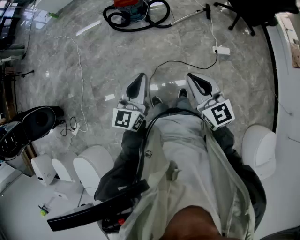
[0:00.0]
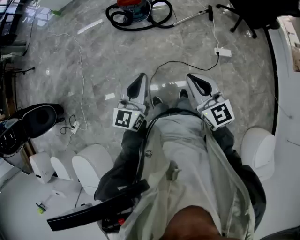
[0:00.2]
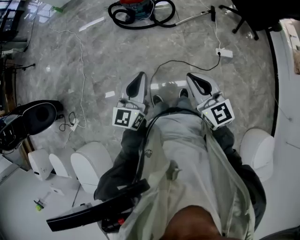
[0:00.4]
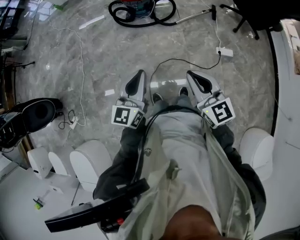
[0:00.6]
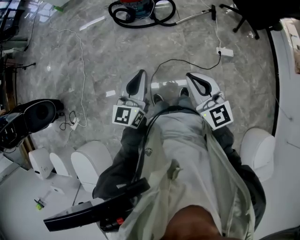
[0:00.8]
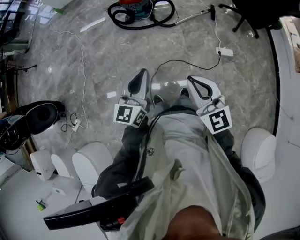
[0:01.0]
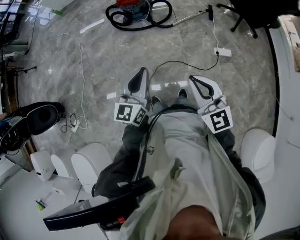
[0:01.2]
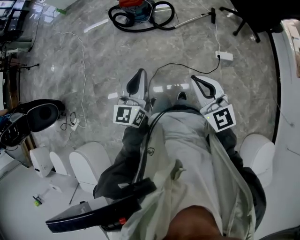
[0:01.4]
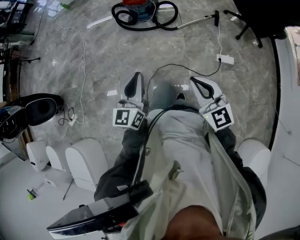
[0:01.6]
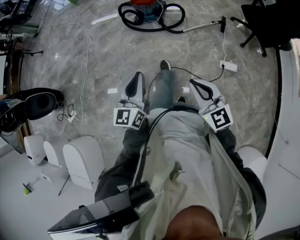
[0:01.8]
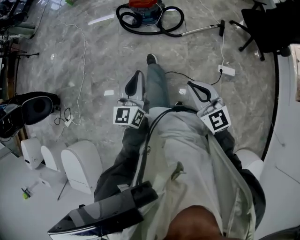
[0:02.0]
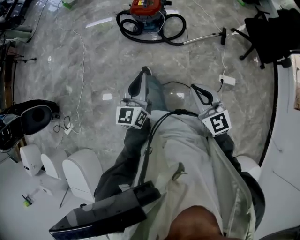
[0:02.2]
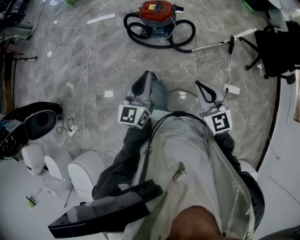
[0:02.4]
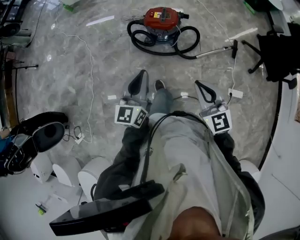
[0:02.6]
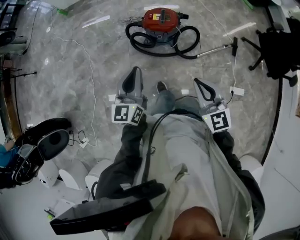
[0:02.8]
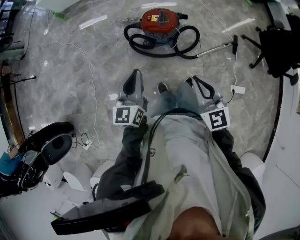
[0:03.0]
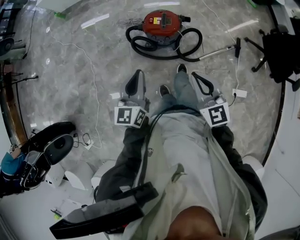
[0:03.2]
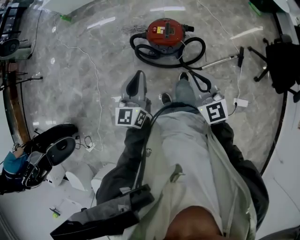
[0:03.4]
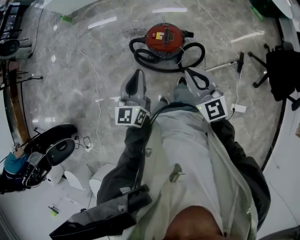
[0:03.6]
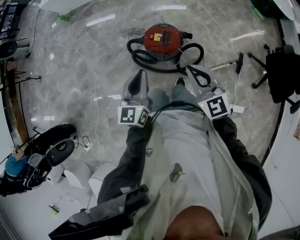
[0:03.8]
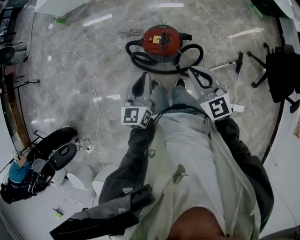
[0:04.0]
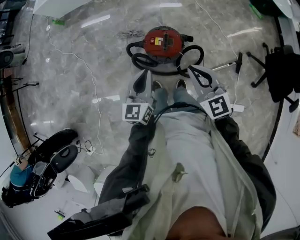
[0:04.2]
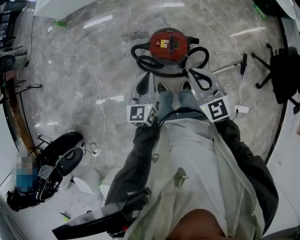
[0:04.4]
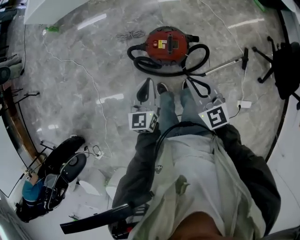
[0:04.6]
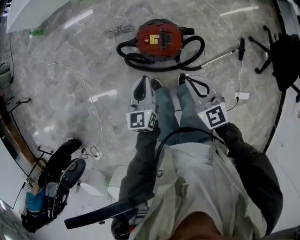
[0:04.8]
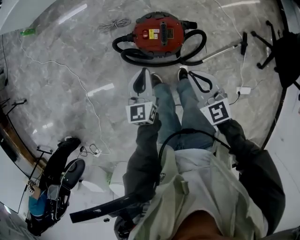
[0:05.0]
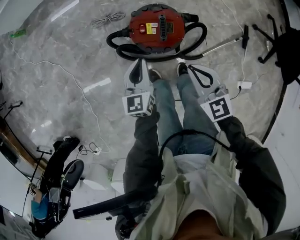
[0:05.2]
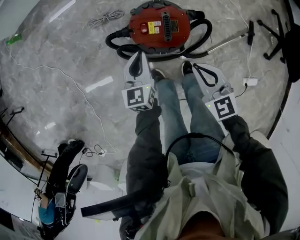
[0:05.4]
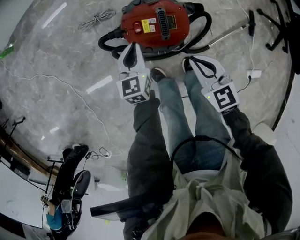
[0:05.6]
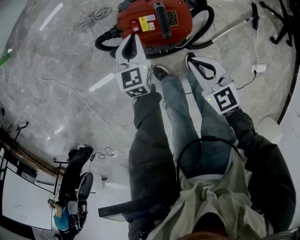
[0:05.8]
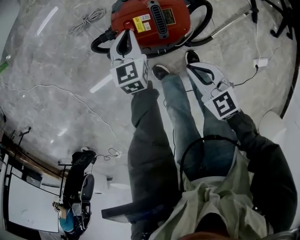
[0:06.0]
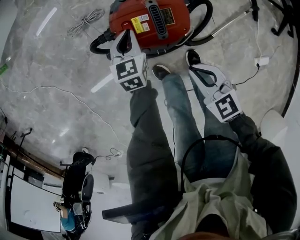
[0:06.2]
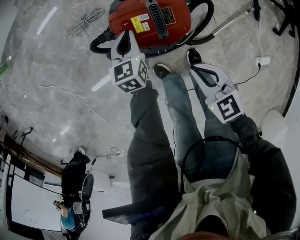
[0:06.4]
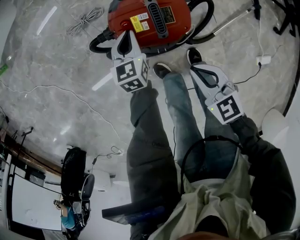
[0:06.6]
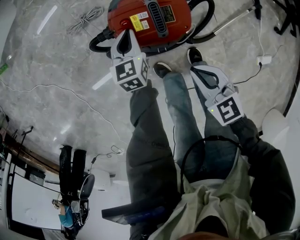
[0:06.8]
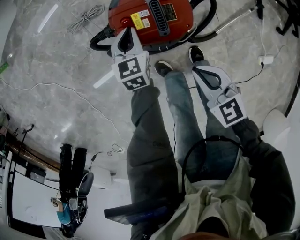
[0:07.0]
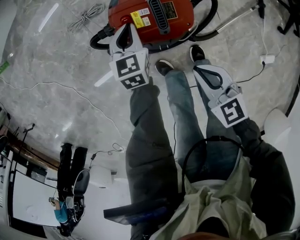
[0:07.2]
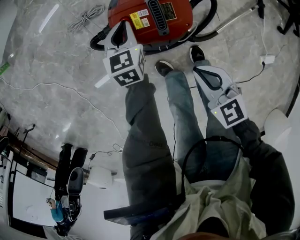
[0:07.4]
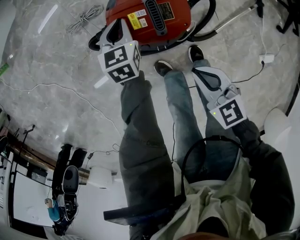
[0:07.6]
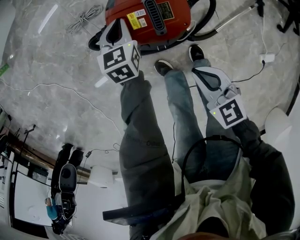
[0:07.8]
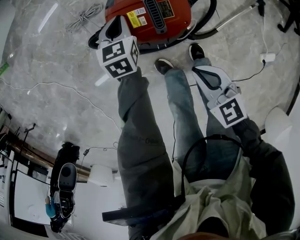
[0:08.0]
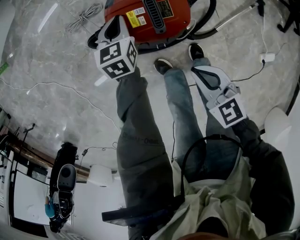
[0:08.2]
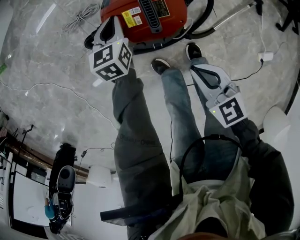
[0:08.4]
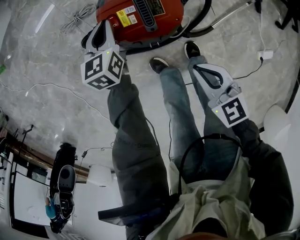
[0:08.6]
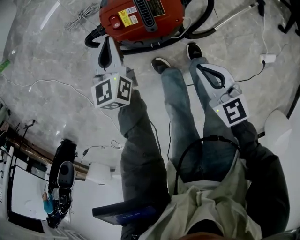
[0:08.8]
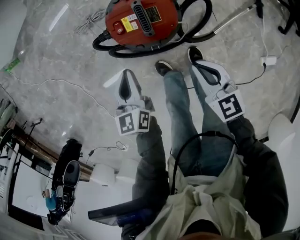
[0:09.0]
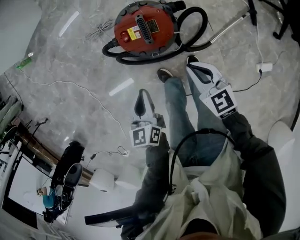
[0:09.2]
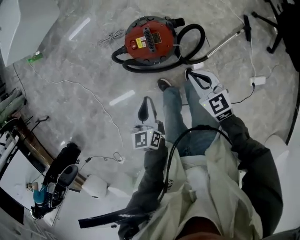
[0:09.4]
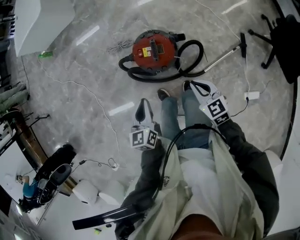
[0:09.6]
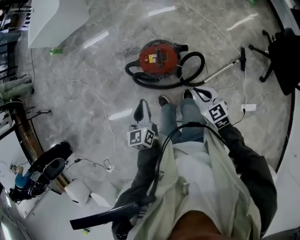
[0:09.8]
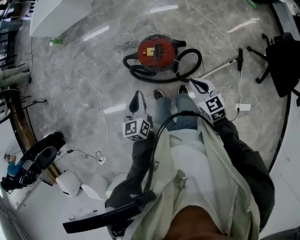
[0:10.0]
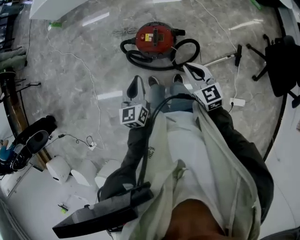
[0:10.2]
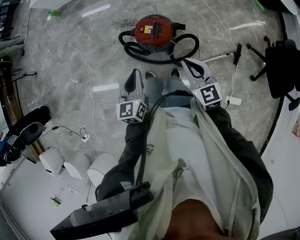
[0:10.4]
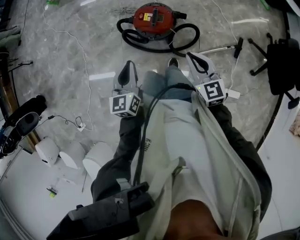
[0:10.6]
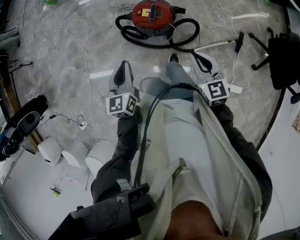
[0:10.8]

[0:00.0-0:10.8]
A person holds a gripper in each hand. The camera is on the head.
0:00.0 to 0:01.6: The right gripper heads to the right, covering approximately 5 cm.
0:01.6 to 0:03.0: The pair of grippers is taken forward, some 50 cm.
0:03.0 to 0:04.6: The left gripper moves forward and downward, approximately 30 cm. Meanwhile the right gripper travels forward by approximately 30 cm.
0:04.6 to 0:06.2: The left gripper goes some 40 cm downward and forward, and changes its angle by some 30 degrees, while the right gripper travels downward by about 35 cm, and swivels some 20 degrees.
0:06.2 to 0:07.8: The grippers stay close to where they were, moving slightly.
0:07.8 to 0:09.2: The left gripper is displaced backward and upward by some 30 cm, and rotates approximately 20 degrees; the right gripper is displaced upward and to the right by approximately 10 cm.
0:09.2 to 0:10.8: Both grippers travel together upward, approximately 25 cm.

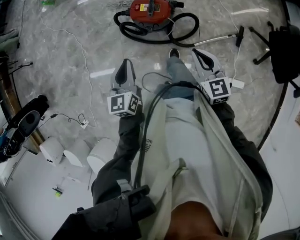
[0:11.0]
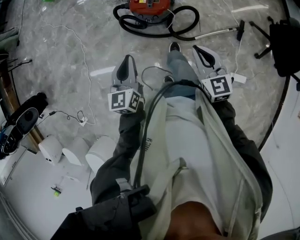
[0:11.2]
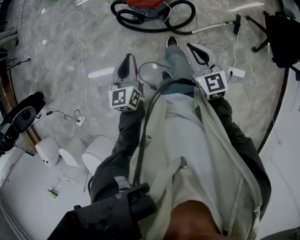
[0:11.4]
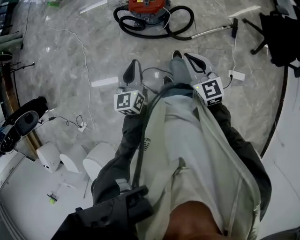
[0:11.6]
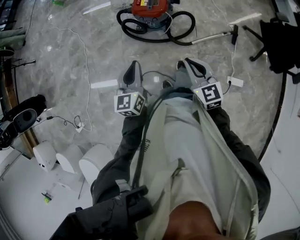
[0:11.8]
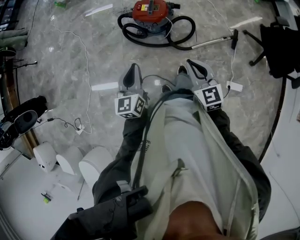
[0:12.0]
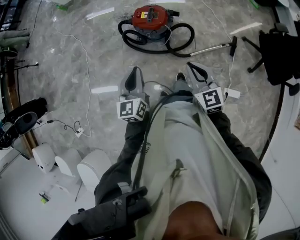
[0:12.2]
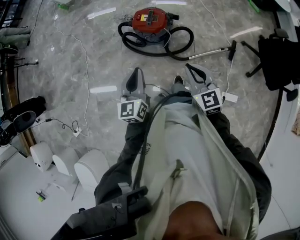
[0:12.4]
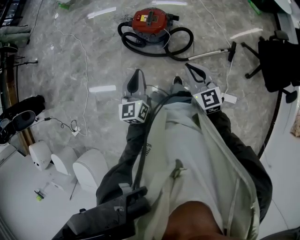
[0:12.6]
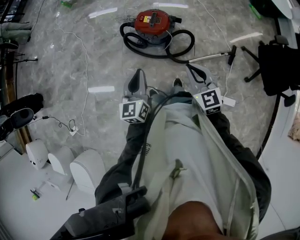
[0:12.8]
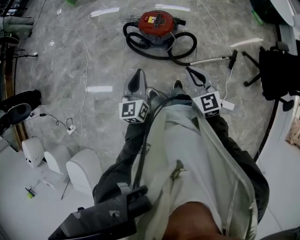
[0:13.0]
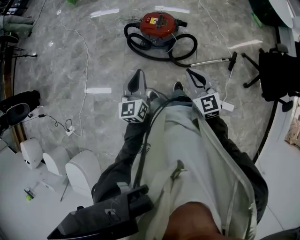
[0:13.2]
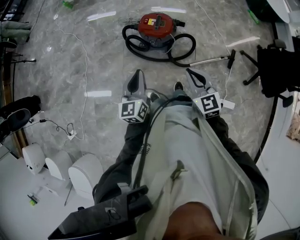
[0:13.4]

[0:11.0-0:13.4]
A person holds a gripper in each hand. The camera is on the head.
0:11.0 to 0:12.2: The grippers both shift backward by approximately 15 cm.
0:12.2 to 0:13.4: The grippers stay close to where they were, moving slightly.

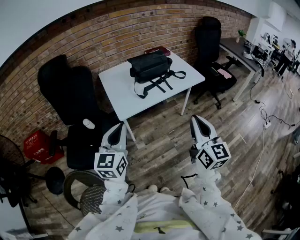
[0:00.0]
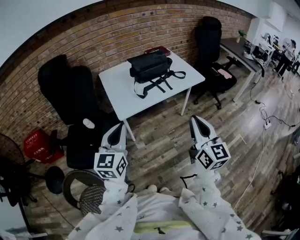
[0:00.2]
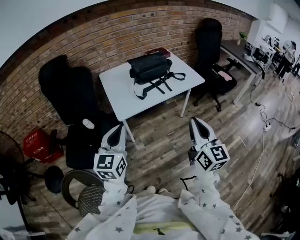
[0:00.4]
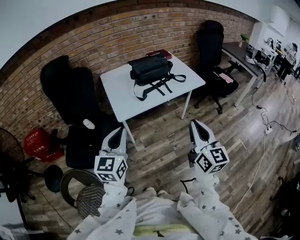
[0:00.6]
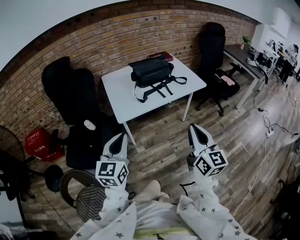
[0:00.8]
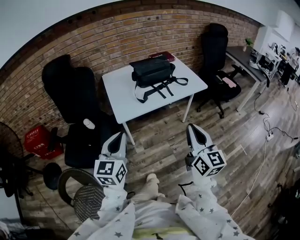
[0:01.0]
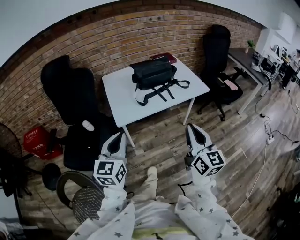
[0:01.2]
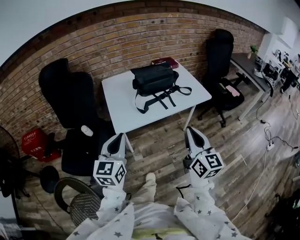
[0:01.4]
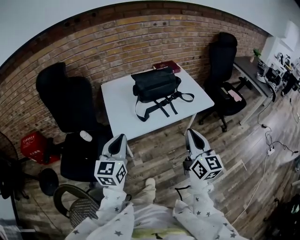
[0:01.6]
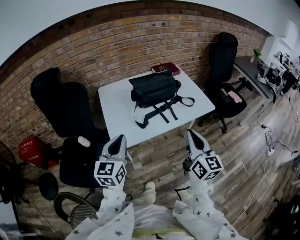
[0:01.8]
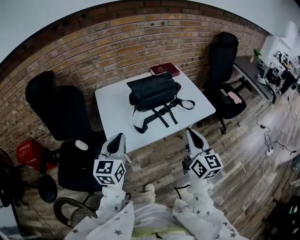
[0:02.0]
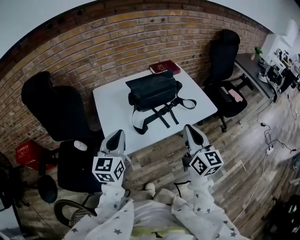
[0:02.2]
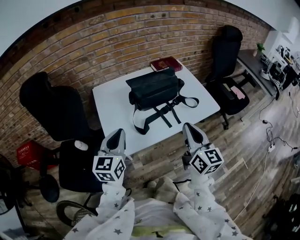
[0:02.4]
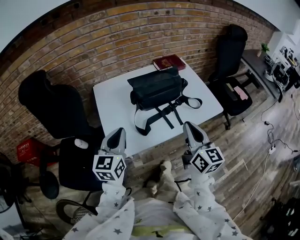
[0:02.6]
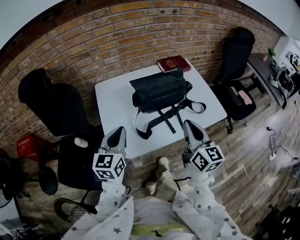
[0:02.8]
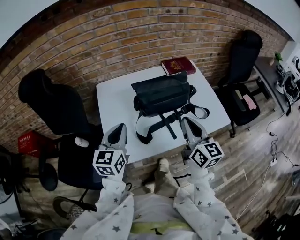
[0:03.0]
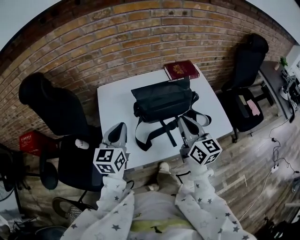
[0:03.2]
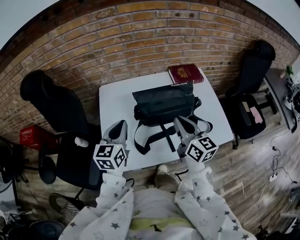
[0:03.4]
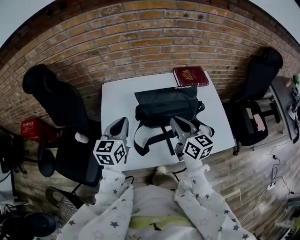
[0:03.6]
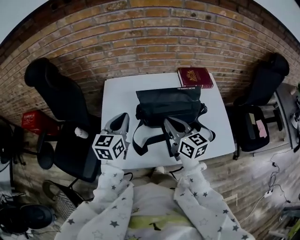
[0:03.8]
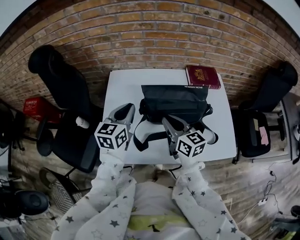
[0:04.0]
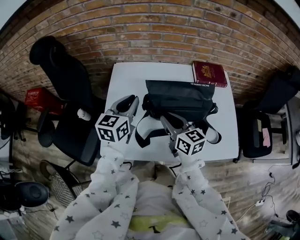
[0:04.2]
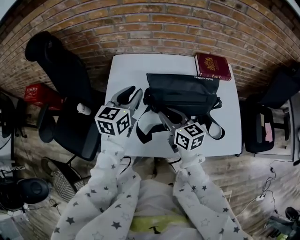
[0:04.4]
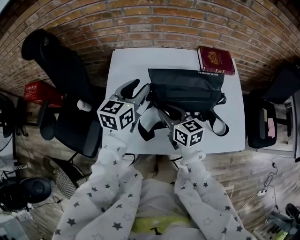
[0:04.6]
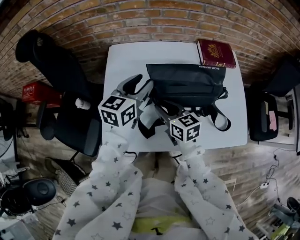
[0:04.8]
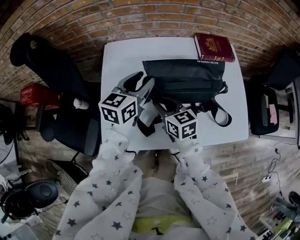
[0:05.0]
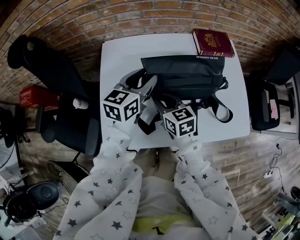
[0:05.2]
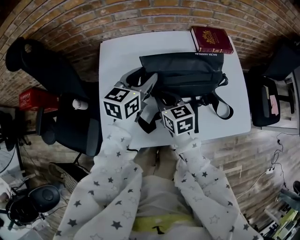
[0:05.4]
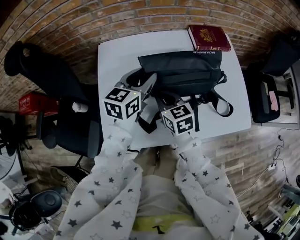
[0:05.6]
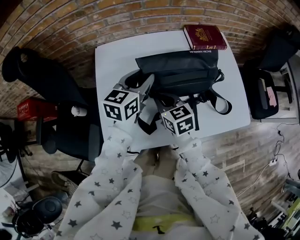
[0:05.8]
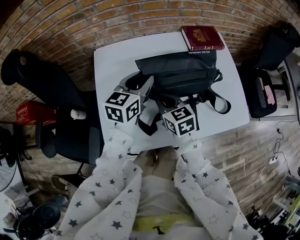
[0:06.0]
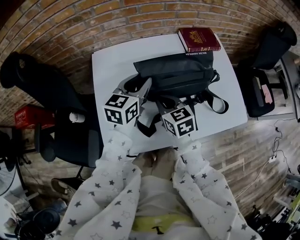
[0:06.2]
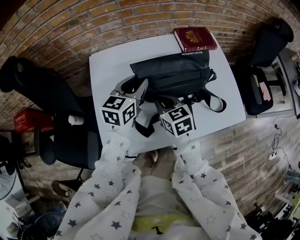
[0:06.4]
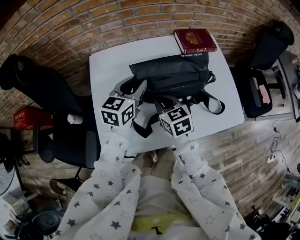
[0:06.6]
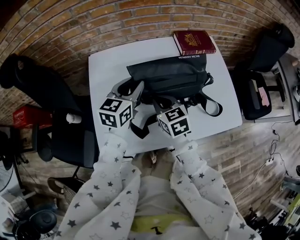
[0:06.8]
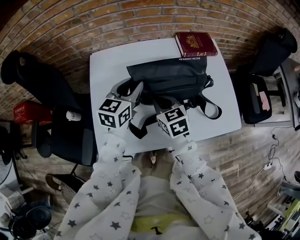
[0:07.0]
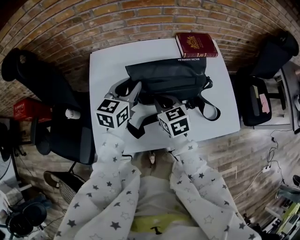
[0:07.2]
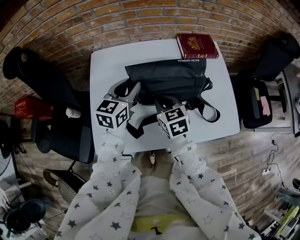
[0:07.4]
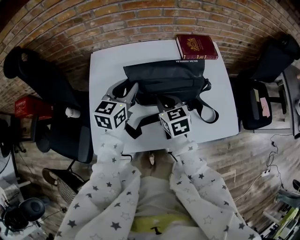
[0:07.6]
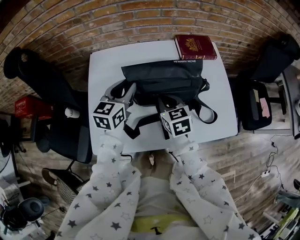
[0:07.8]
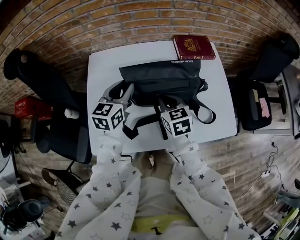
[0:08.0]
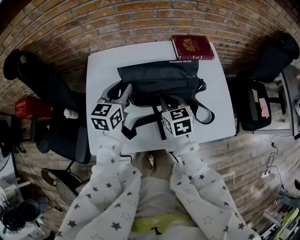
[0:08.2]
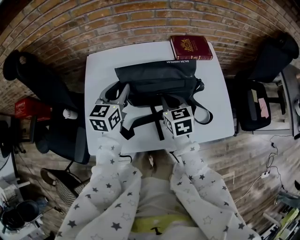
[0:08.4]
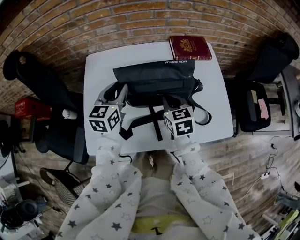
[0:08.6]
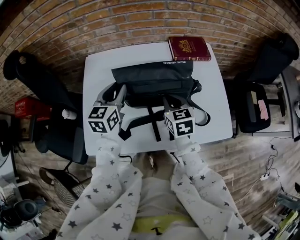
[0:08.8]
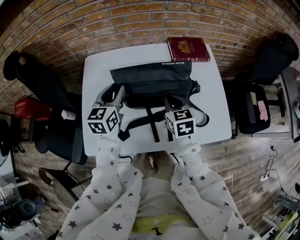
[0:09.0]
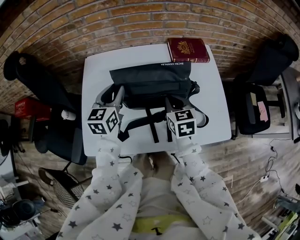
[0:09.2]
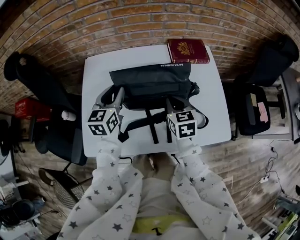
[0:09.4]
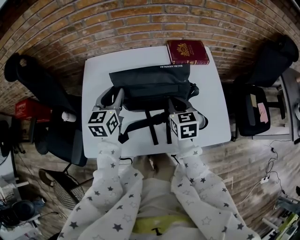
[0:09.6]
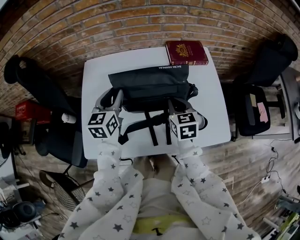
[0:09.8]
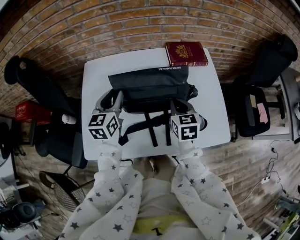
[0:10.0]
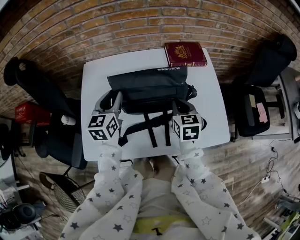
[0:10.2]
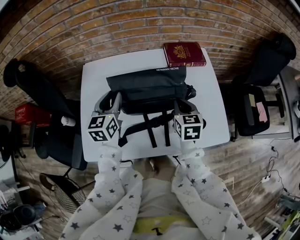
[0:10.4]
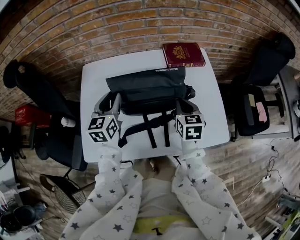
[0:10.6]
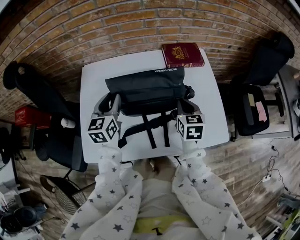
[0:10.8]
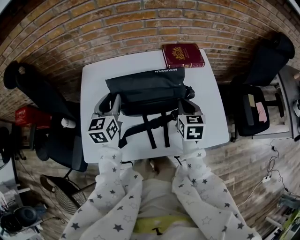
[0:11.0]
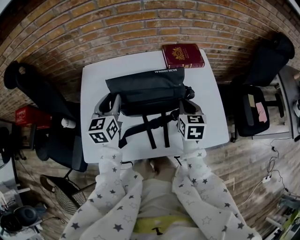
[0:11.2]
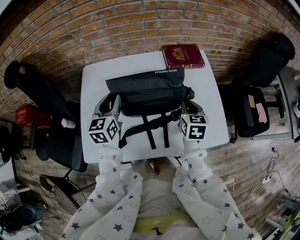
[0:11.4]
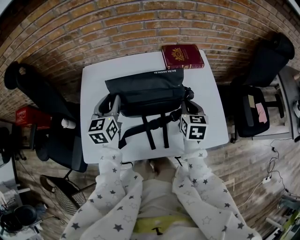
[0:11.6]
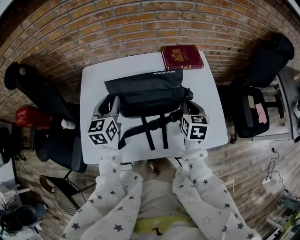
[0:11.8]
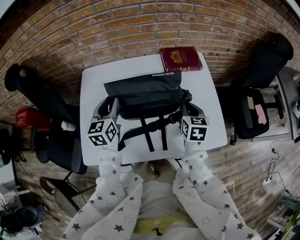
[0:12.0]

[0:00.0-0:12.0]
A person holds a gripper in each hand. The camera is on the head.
0:00.0 to 0:01.6: The two grippers go approximately 15 cm forward.
0:01.6 to 0:03.0: Both grippers move forward, roughly 25 cm.
0:03.0 to 0:04.4: The right gripper heads forward, downward and to the left, covering roughly 20 cm, and rotates some 40 degrees, while the left gripper shifts some 15 cm forward, and opens its fingers.
0:04.4 to 0:06.0: The left gripper heads to the right, covering some 5 cm. Meanwhile the right gripper shifts some 5 cm downward, and turns by about 20 degrees.
0:06.0 to 0:07.6: The right gripper shifts some 5 cm to the right.
0:07.6 to 0:09.0: The right gripper travels to the right by some 10 cm.
0:09.0 to 0:10.4: The right gripper travels to the right by about 5 cm.
0:10.4 to 0:12.0: The right gripper goes about 5 cm to the right.
